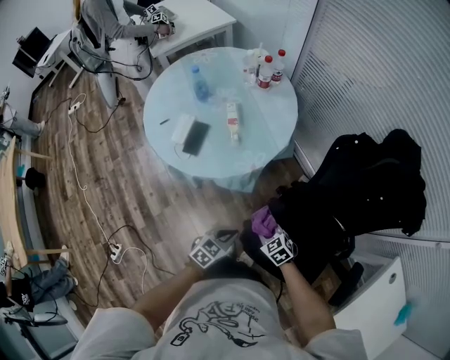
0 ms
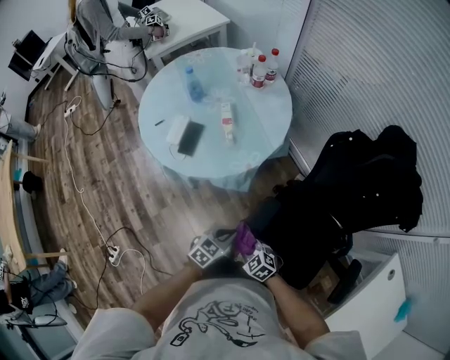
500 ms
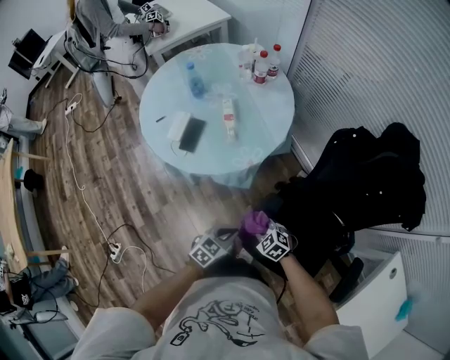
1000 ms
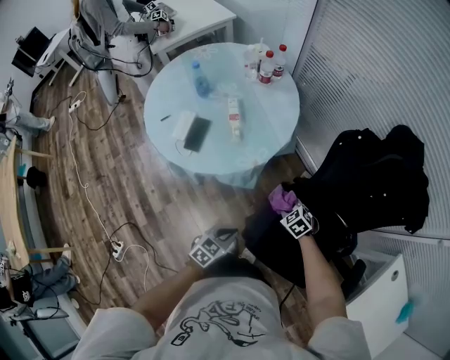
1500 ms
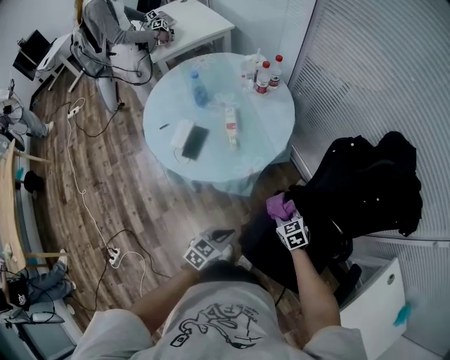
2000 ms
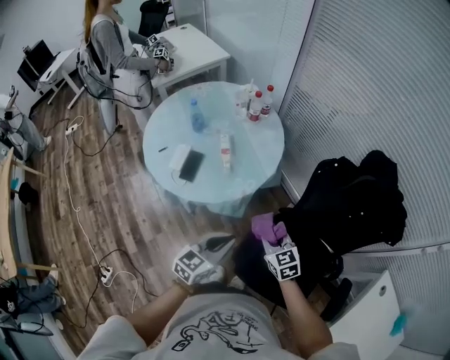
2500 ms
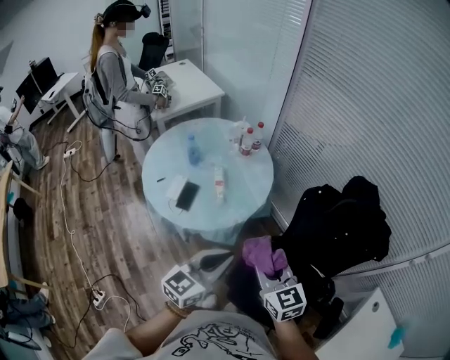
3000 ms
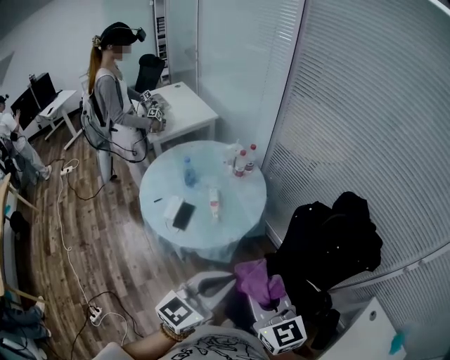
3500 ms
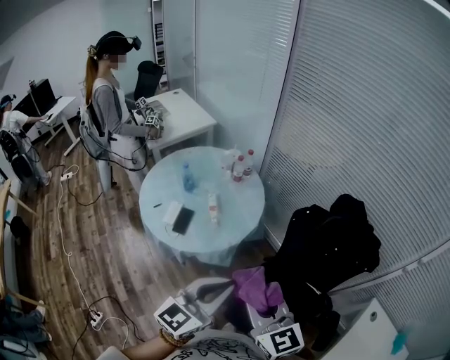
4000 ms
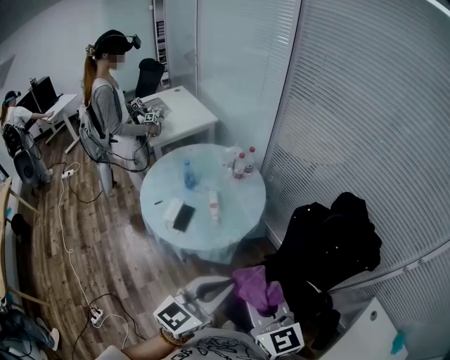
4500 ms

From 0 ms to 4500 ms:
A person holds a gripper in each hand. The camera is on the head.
From 0 ms to 2000 ms: The right gripper goes about 10 cm forward and to the right.
From 2000 ms to 4500 ms: Both grippers move upward, about 40 cm. The left gripper points its fingers roughly 30 degrees further upward, while the right gripper points its fingers some 40 degrees further upward.

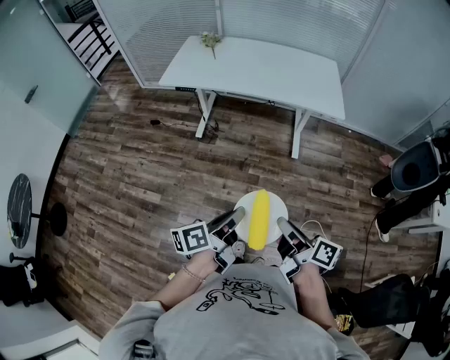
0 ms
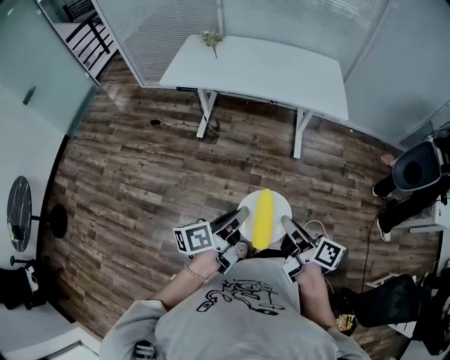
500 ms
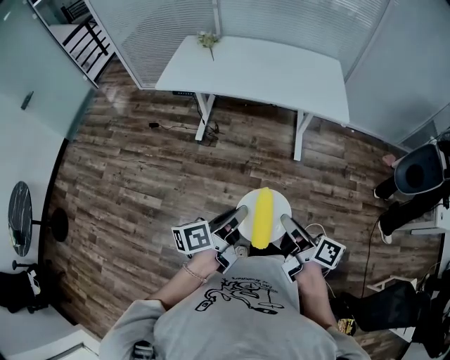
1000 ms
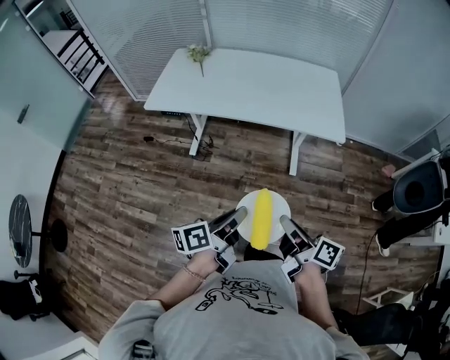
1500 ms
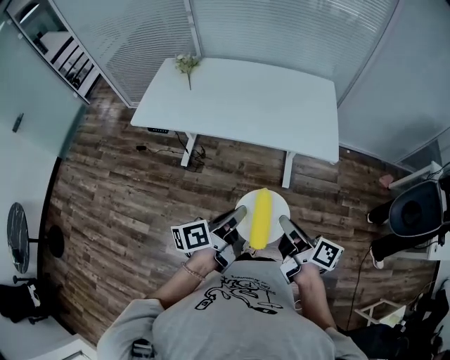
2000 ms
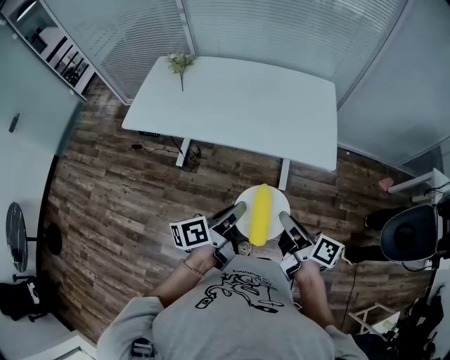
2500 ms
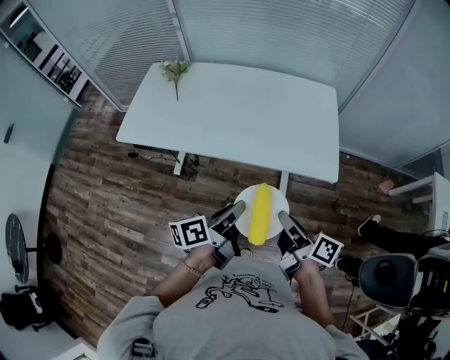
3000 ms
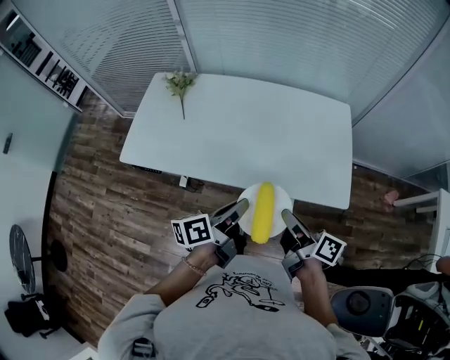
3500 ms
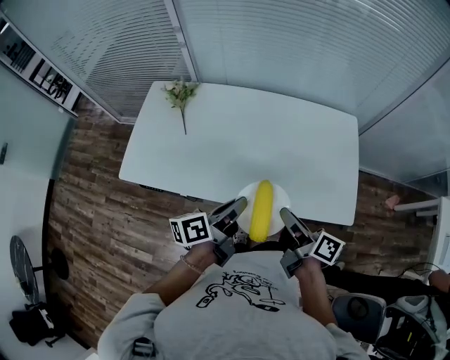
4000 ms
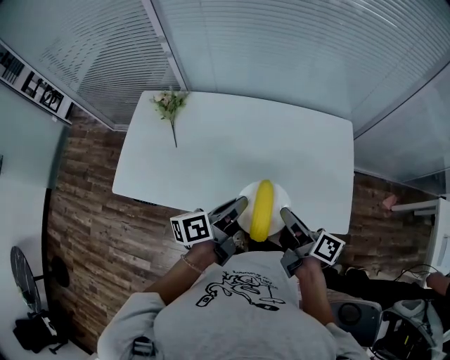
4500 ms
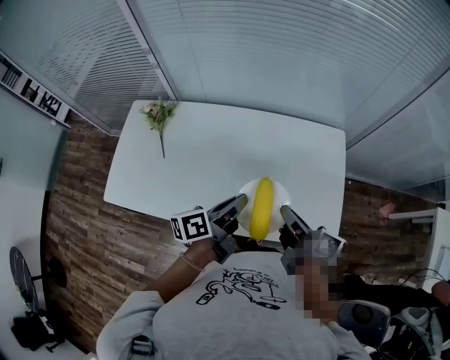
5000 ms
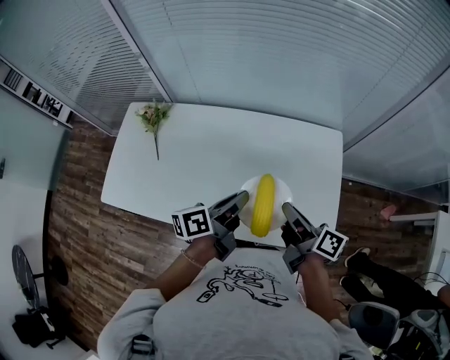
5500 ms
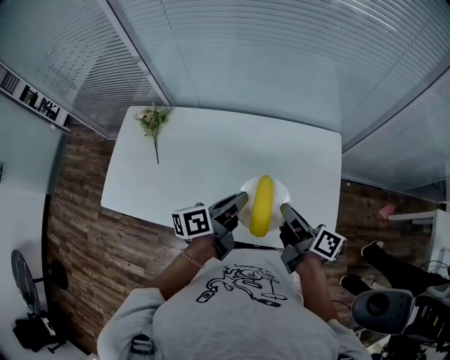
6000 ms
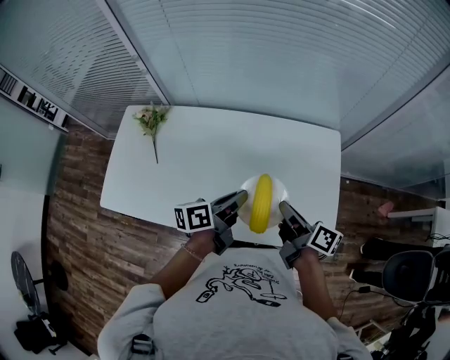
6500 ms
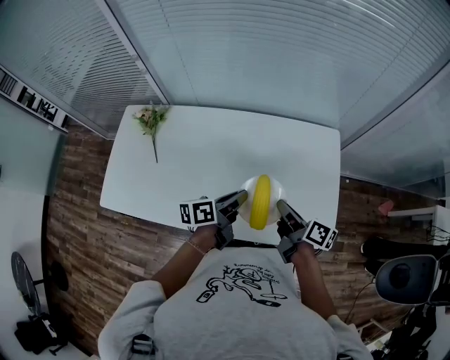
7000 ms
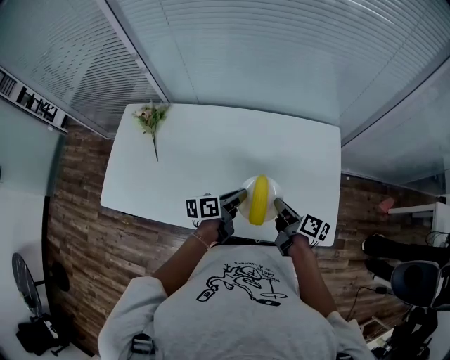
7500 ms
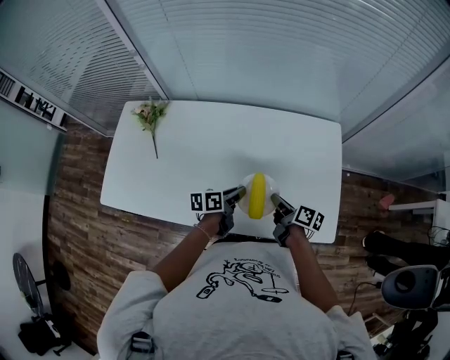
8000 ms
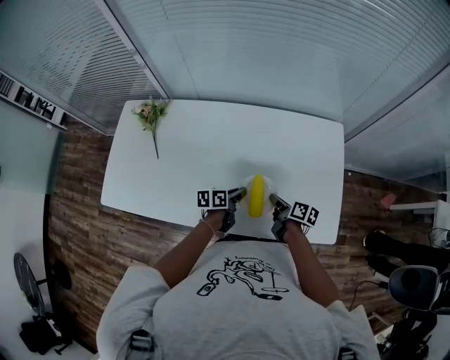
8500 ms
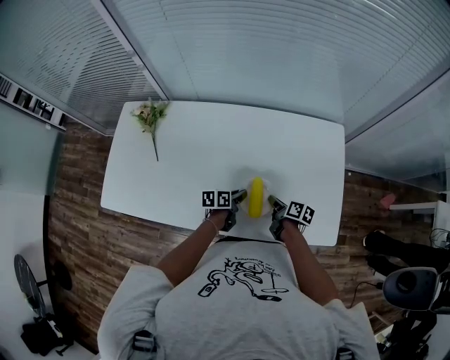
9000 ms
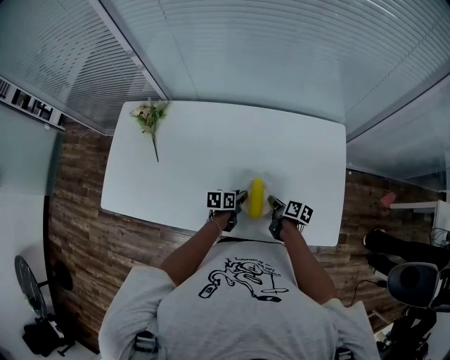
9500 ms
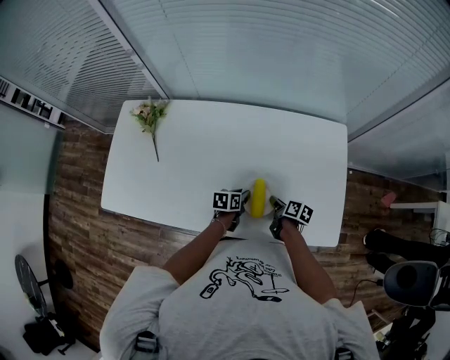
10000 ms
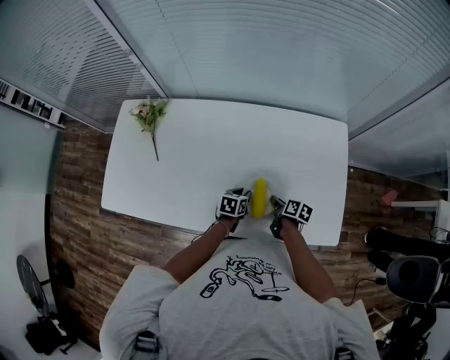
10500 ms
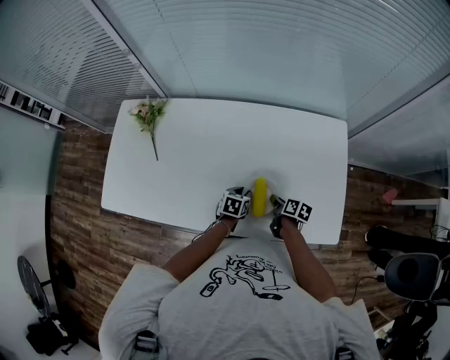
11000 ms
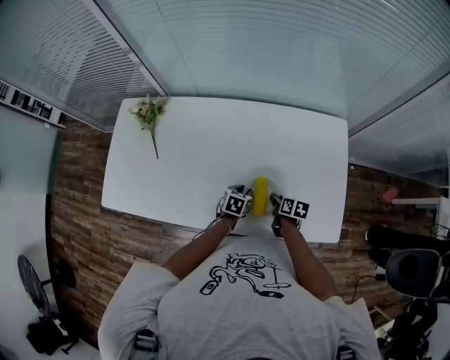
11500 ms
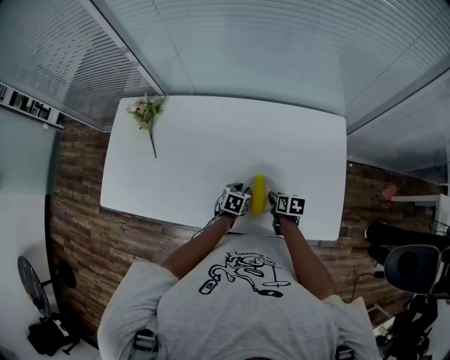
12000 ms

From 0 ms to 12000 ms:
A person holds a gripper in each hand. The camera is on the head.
From 0 ms to 2000 ms: Both grippers move forward, about 30 cm.
From 2000 ms to 4000 ms: Both grippers travel together forward, some 35 cm.
From 4000 ms to 6000 ms: The grippers both shift forward and to the right by about 20 cm.
From 6000 ms to 8000 ms: Both grippers travel together downward, some 15 cm.
From 8000 ms to 10000 ms: The grippers both shift downward by roughly 15 cm. The left gripper turns by about 20 degrees.
From 10000 ms to 12000 ms: The left gripper turns by some 30 degrees; the right gripper turns by approximately 30 degrees.

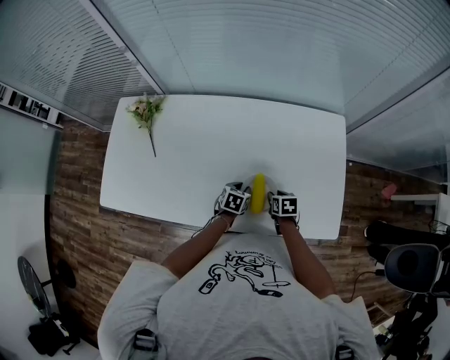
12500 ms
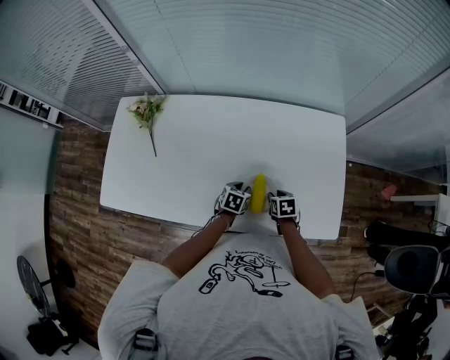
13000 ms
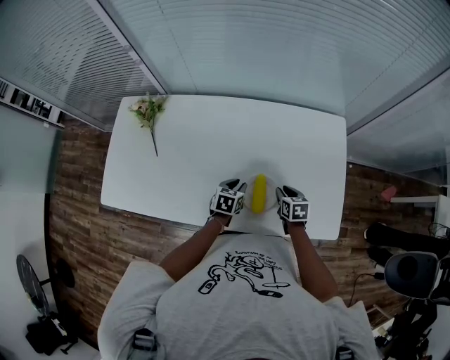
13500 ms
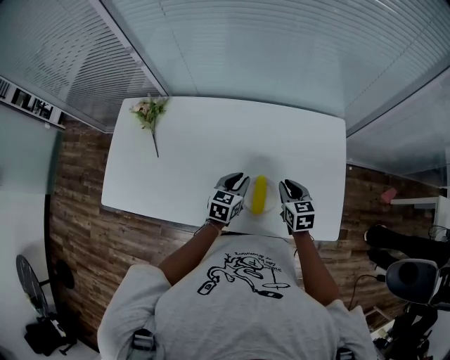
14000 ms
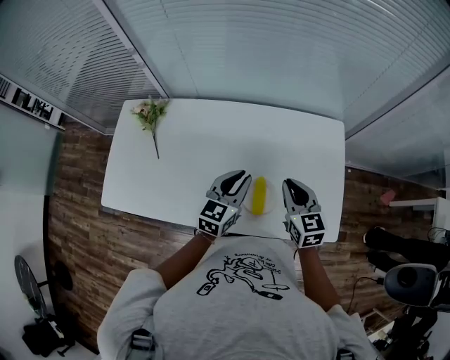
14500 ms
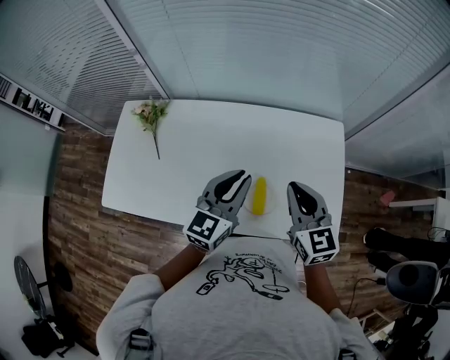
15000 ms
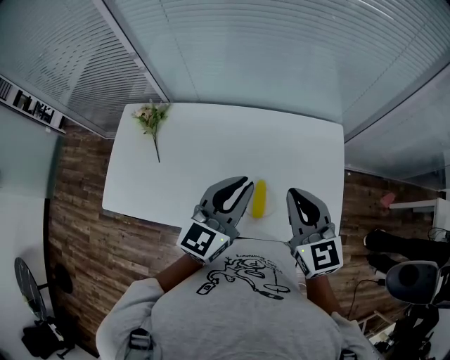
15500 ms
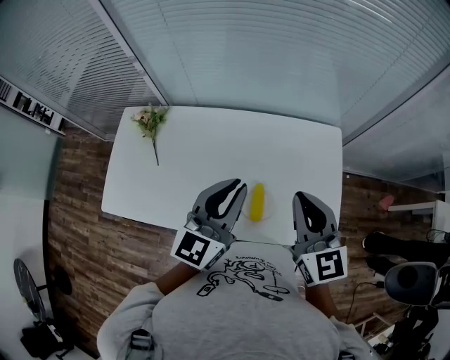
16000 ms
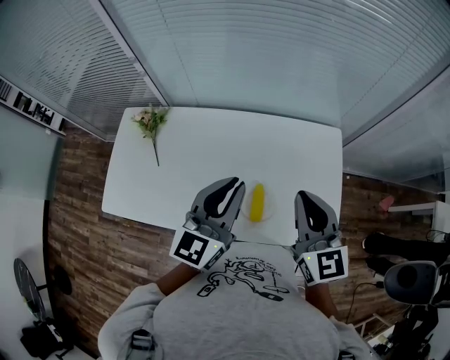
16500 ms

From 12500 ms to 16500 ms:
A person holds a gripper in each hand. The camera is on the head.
From 12500 ms to 14500 ms: The two grippers go about 25 cm upward. The left gripper tips its fingers upward by approximately 40 degrees. Meanwhile the right gripper points its fingers about 40 degrees further upward, and closes up.
From 14500 ms to 16500 ms: The grippers both shift upward by some 15 cm.

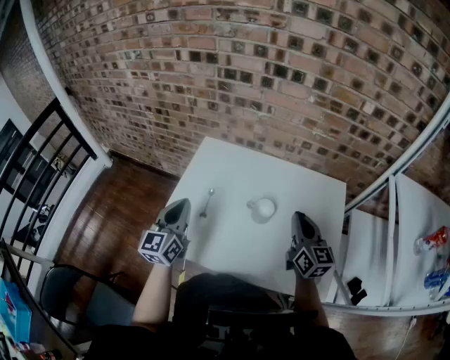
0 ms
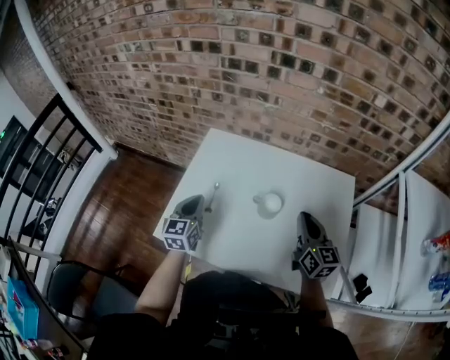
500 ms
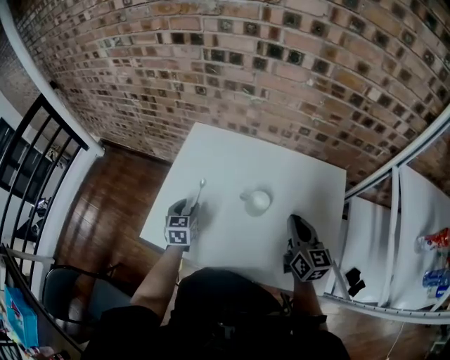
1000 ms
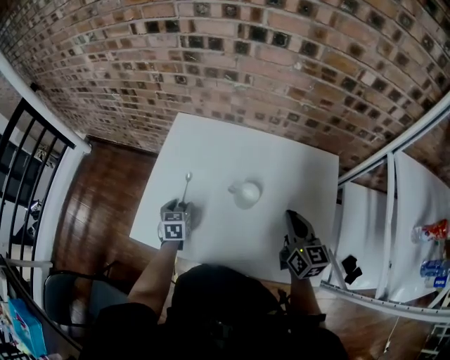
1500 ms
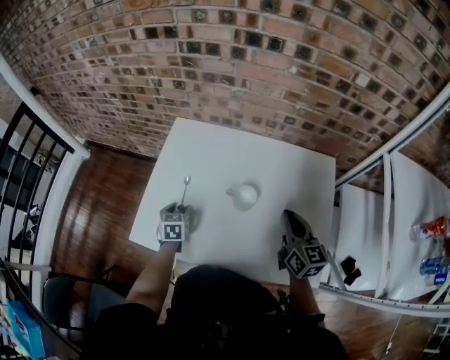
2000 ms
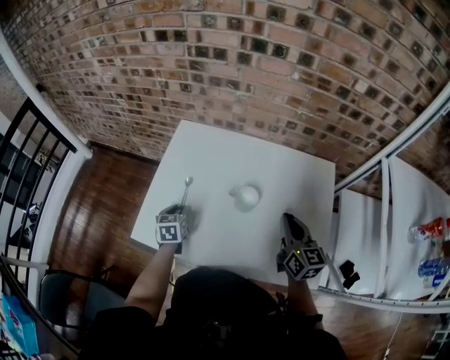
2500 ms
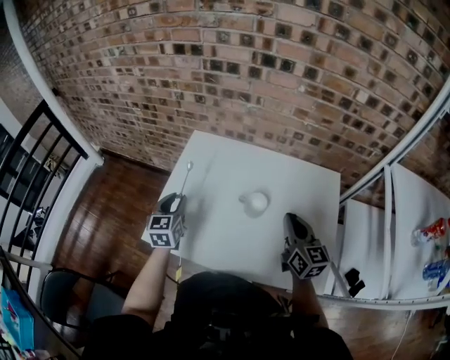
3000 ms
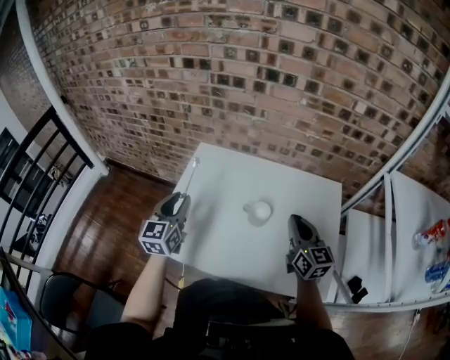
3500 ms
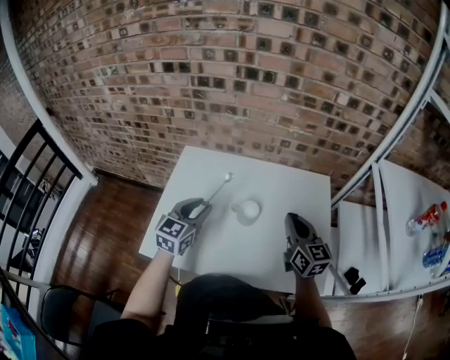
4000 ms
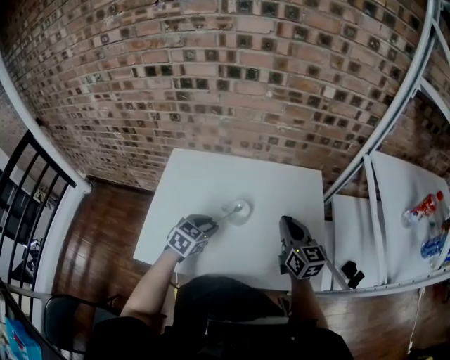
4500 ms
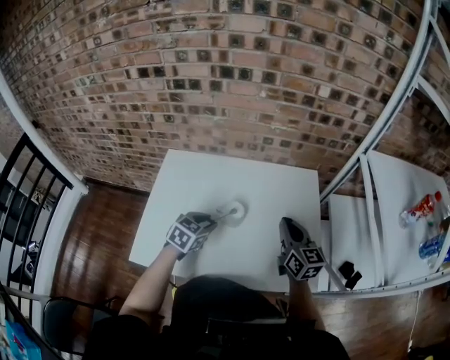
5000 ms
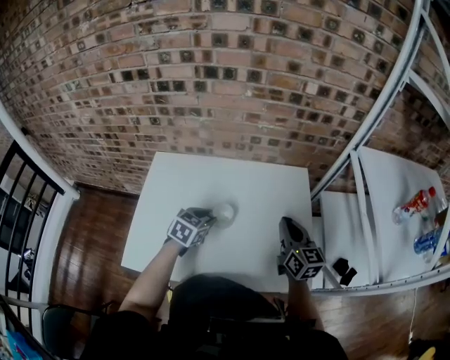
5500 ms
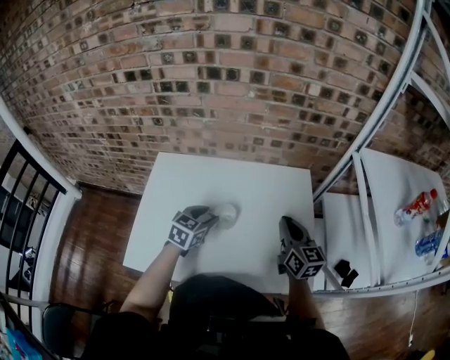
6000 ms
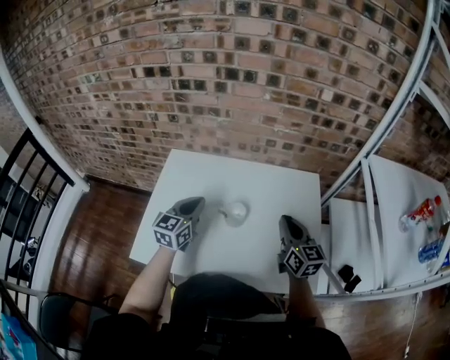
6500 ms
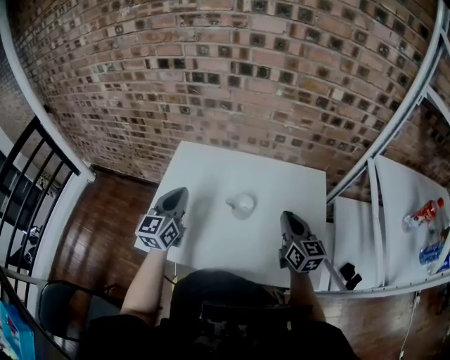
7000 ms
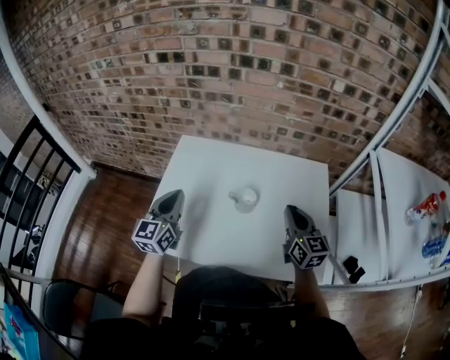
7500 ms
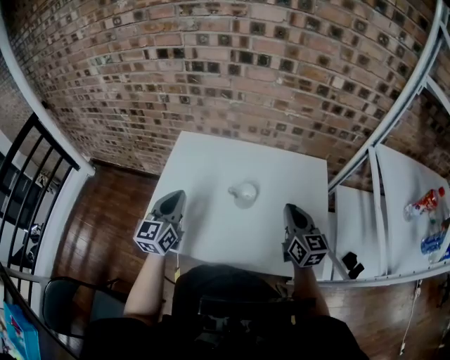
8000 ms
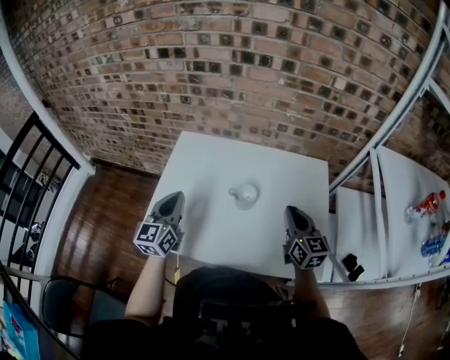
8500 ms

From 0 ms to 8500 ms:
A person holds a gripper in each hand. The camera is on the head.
From 0 ms to 2000 ms: The right gripper ends up approximately 5 cm from where it was. Meanwhile the left gripper shifts about 25 cm downward, tilts its fingers about 40 degrees downward, and opens up.
From 2000 ms to 4000 ms: The left gripper moves upward, approximately 25 cm, turns by approximately 40 degrees, and closes.
From 4000 ms to 6500 ms: The left gripper travels to the right and back again, approximately 10 cm each way, and closes its fingers.
From 6500 ms to 8500 ms: The left gripper goes some 15 cm to the left and backward.
